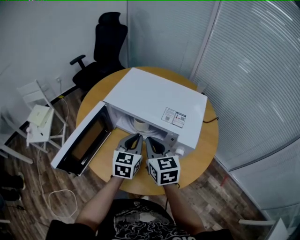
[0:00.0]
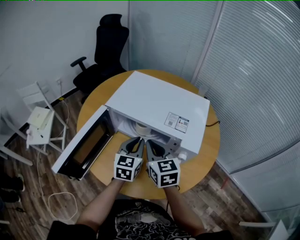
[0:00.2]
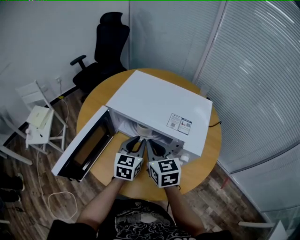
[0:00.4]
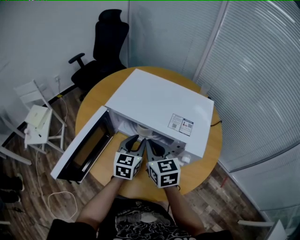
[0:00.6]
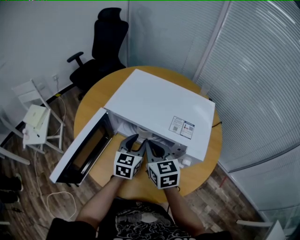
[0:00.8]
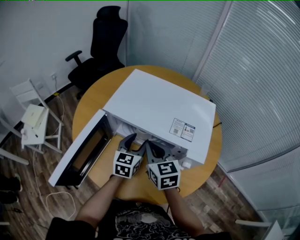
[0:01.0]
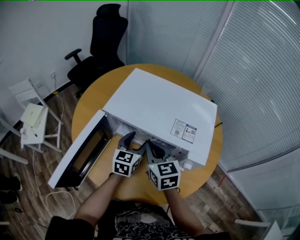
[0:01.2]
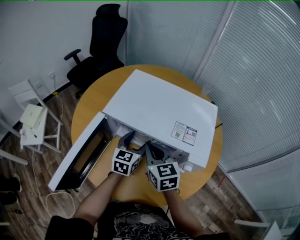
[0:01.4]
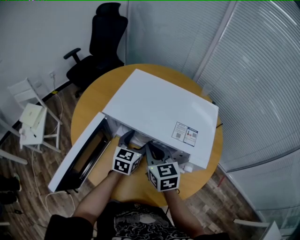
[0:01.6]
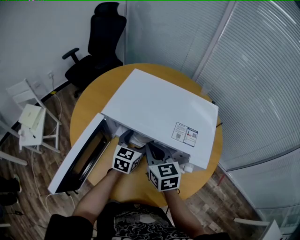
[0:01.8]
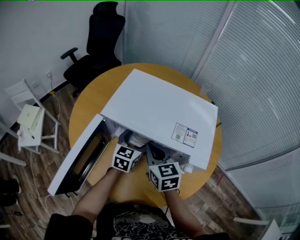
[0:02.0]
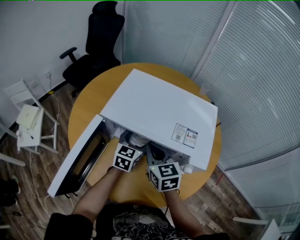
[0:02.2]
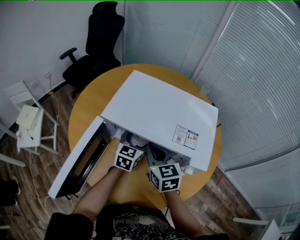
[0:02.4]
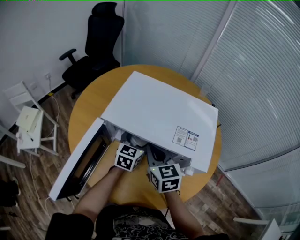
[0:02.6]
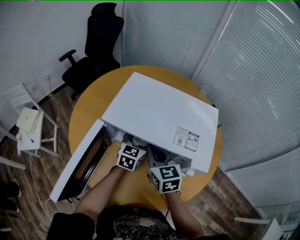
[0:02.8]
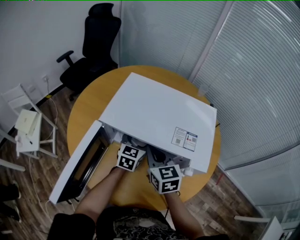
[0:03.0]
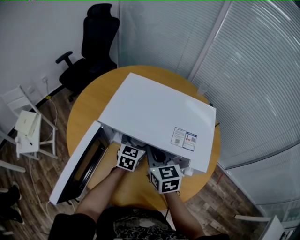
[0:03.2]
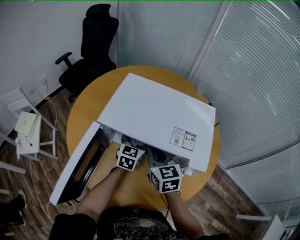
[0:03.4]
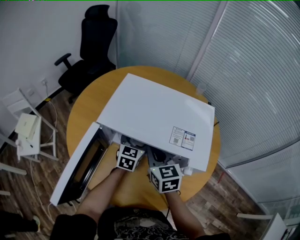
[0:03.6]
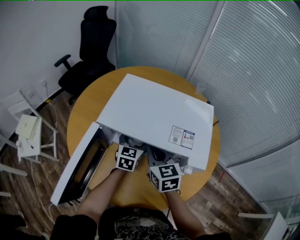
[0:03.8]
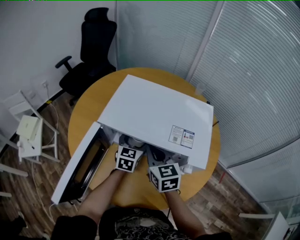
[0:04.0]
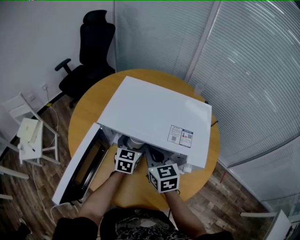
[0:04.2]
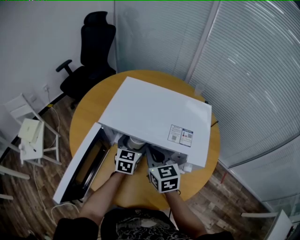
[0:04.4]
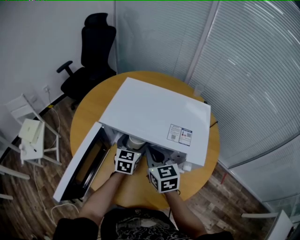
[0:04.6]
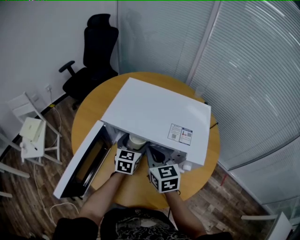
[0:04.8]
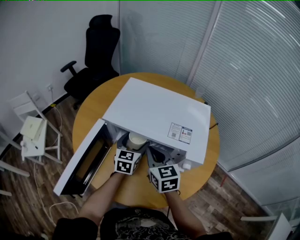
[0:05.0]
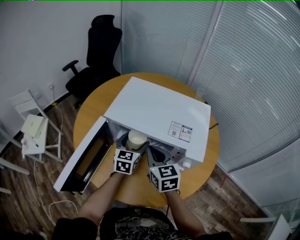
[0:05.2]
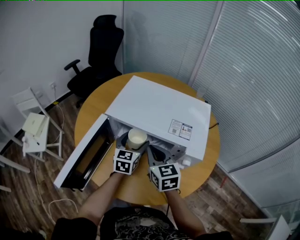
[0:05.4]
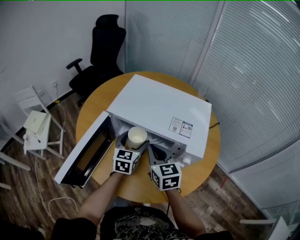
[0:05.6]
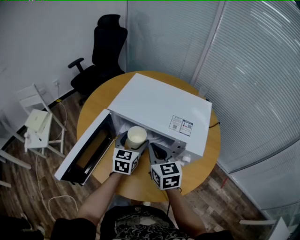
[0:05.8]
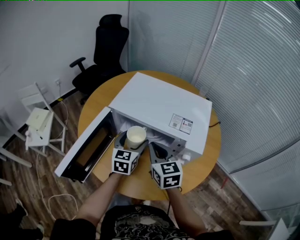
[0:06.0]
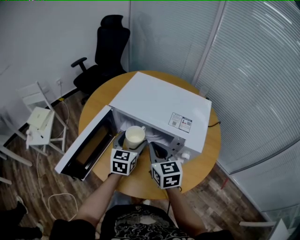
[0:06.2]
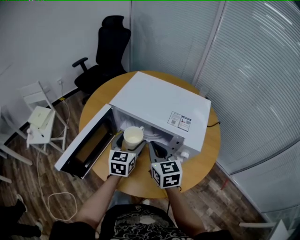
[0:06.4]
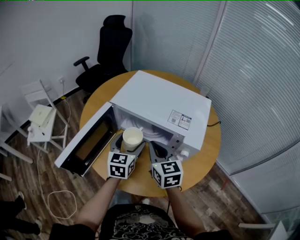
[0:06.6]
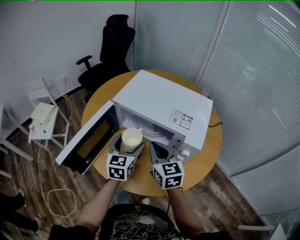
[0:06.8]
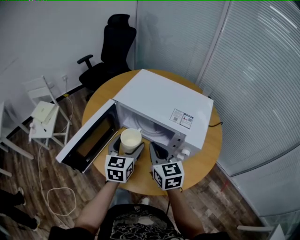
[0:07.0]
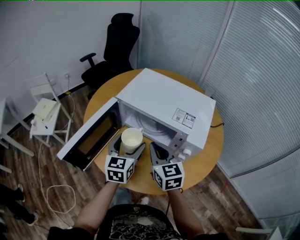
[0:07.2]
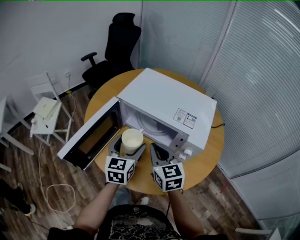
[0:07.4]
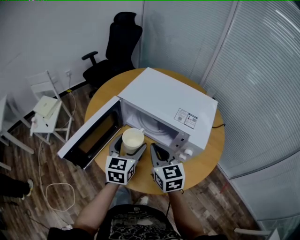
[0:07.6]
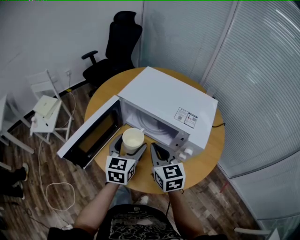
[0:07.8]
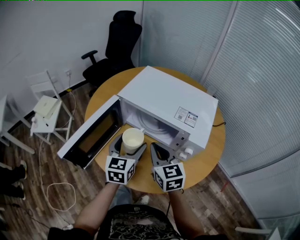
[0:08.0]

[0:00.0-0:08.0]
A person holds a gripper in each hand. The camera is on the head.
0:00.0 to 0:01.6: The left gripper travels forward and downward by about 10 cm, and opens its fingers. Meanwhile the right gripper goes roughly 5 cm forward.
0:01.6 to 0:04.8: The grippers make only small movements.
0:04.8 to 0:06.4: The right gripper travels backward by about 5 cm; the left gripper goes approximately 10 cm backward.
0:06.4 to 0:08.0: The left gripper shifts about 5 cm backward.

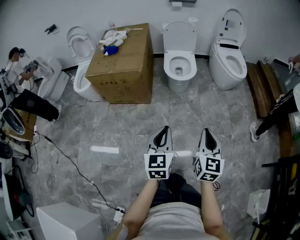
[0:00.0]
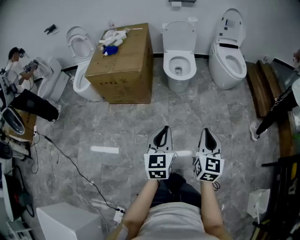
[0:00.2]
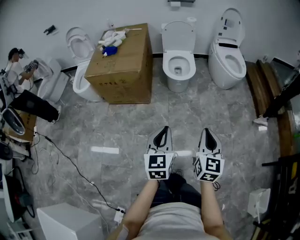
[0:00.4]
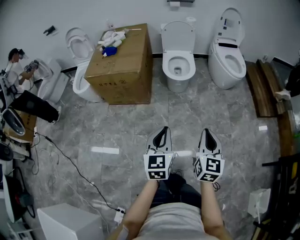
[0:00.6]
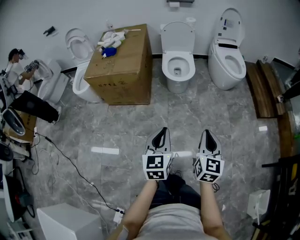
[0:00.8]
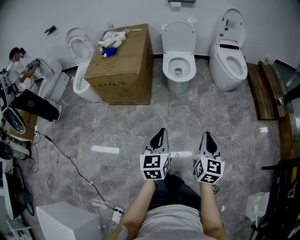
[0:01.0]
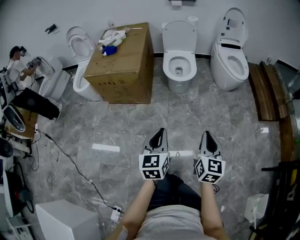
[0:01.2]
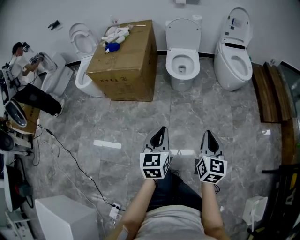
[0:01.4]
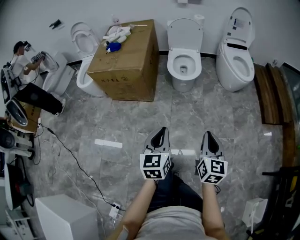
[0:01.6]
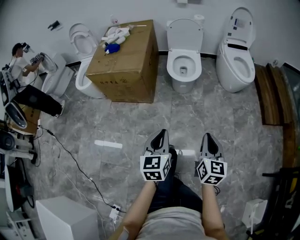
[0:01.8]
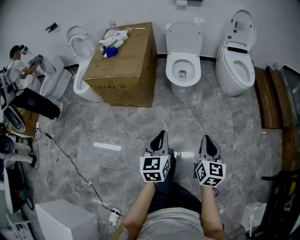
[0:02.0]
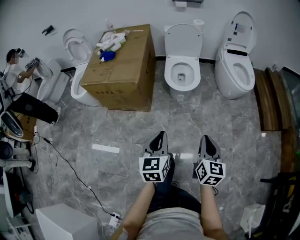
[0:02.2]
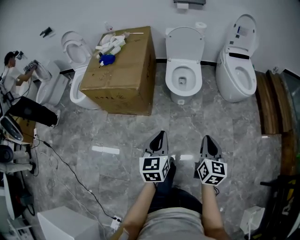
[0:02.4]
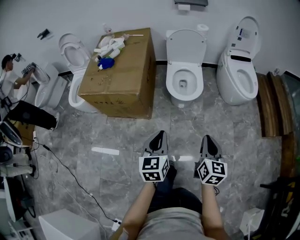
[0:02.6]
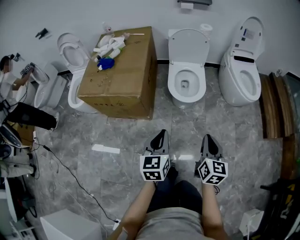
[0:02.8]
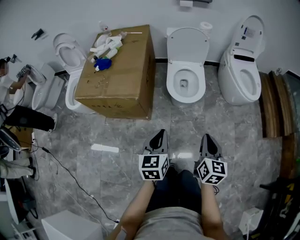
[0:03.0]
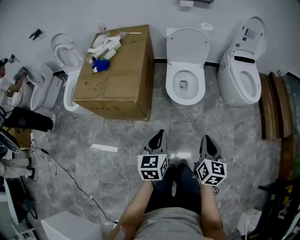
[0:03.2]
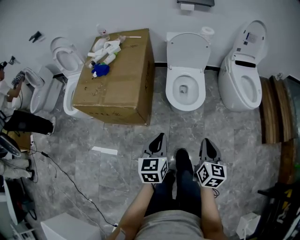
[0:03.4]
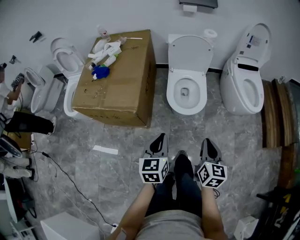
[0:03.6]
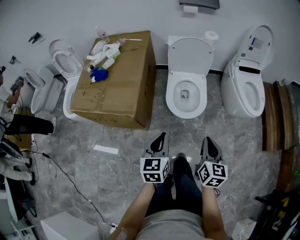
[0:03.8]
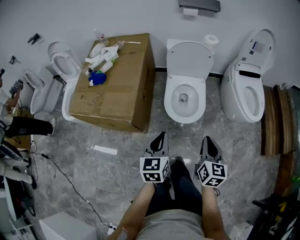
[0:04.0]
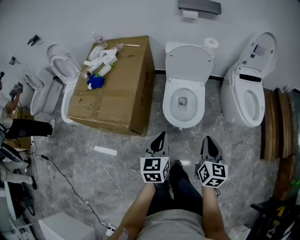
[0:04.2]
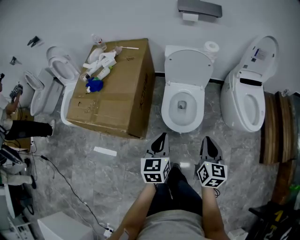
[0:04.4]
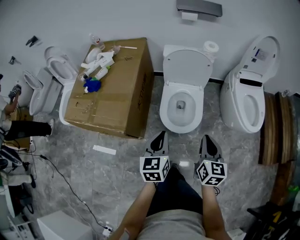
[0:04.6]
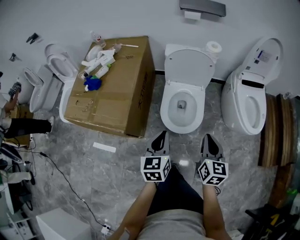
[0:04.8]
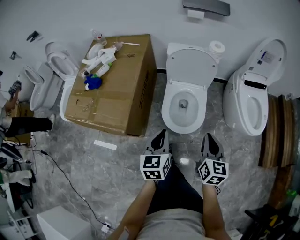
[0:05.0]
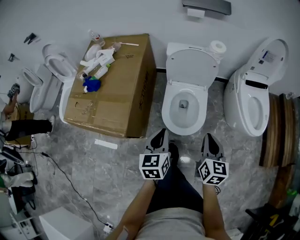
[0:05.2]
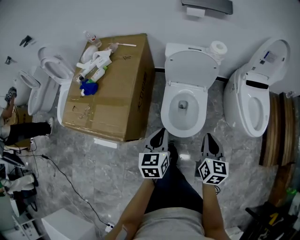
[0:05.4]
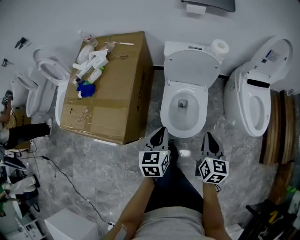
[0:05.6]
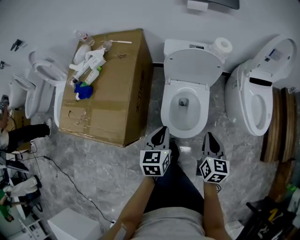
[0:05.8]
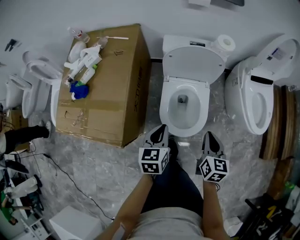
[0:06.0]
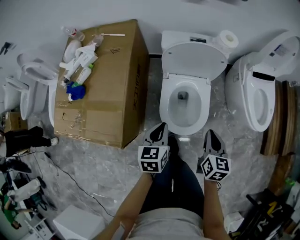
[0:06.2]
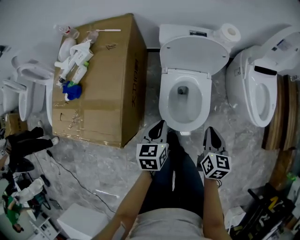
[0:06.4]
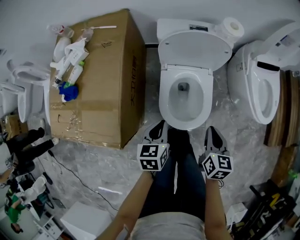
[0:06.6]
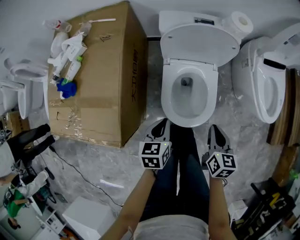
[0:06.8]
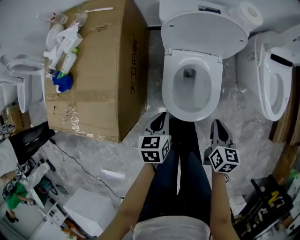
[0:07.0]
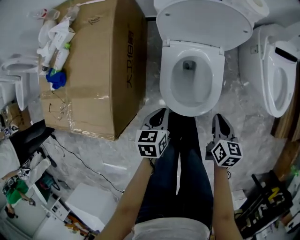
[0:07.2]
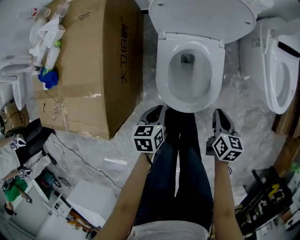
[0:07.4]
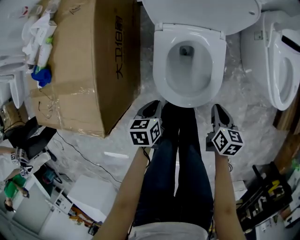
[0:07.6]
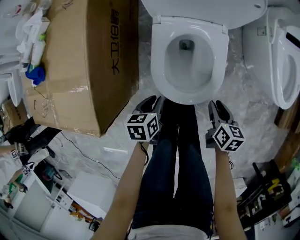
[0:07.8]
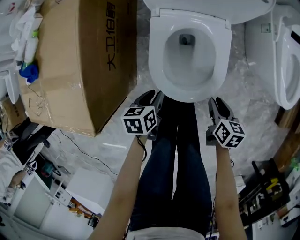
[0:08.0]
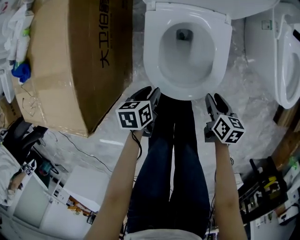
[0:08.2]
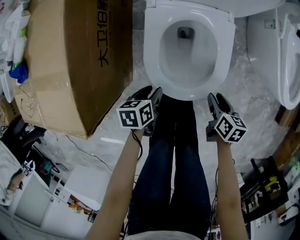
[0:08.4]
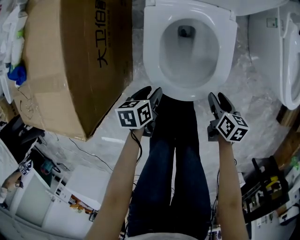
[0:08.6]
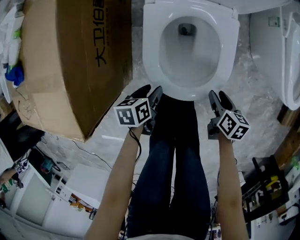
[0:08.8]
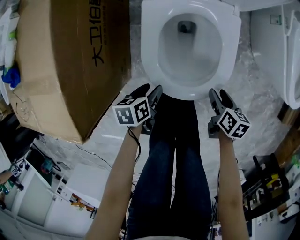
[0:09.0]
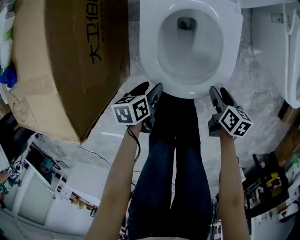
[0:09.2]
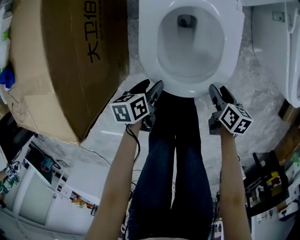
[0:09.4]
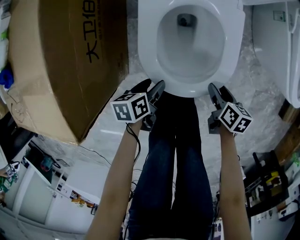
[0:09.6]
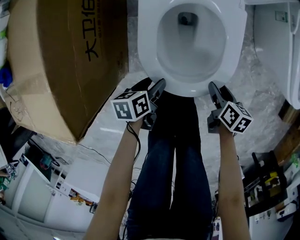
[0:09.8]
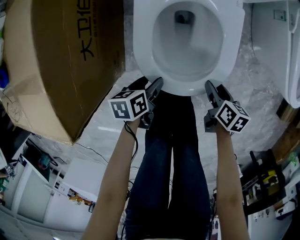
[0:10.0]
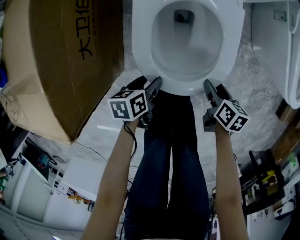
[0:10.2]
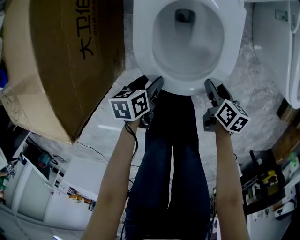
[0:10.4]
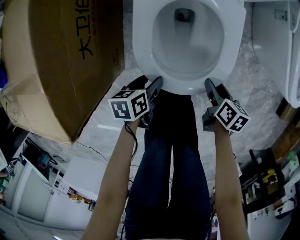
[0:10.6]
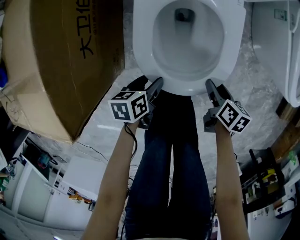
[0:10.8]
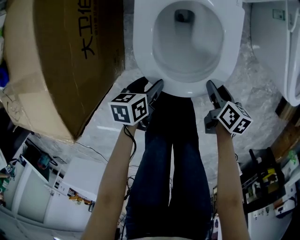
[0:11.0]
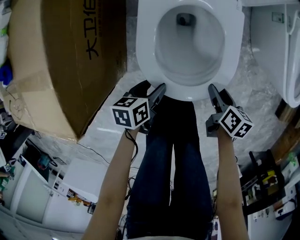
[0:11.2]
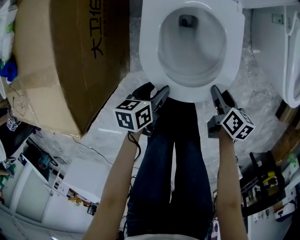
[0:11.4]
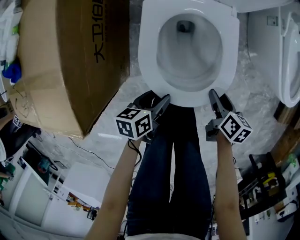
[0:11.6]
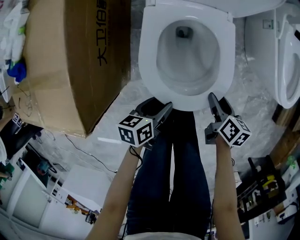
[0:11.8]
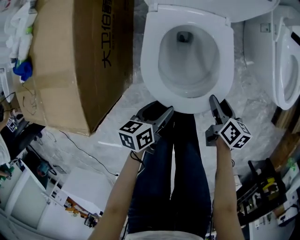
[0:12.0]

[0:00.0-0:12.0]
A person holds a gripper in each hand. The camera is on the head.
0:00.0 to 0:01.6: The right gripper shifts by about 5 cm.
0:01.6 to 0:03.0: The two grippers go about 30 cm forward.
0:03.0 to 0:04.4: Both grippers move forward, roughly 25 cm.
0:04.4 to 0:06.0: The two grippers go approximately 20 cm forward and downward.
0:06.0 to 0:07.6: The two grippers go about 25 cm downward. The right gripper turns by approximately 20 degrees. The left gripper turns by roughly 30 degrees.
0:07.6 to 0:09.0: Both grippers travel together downward, some 15 cm. The right gripper opens its fingers; the left gripper opens its fingers.
0:09.0 to 0:10.4: The grippers stay close to where they were, moving slightly.
0:10.4 to 0:12.0: Both grippers travel together upward, roughly 15 cm.

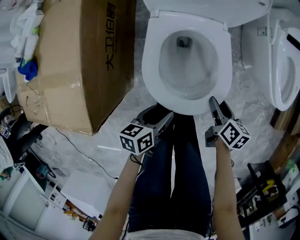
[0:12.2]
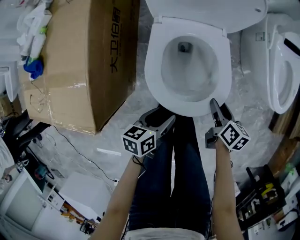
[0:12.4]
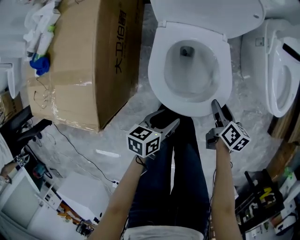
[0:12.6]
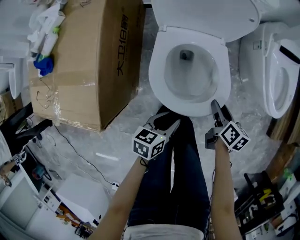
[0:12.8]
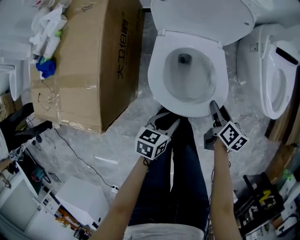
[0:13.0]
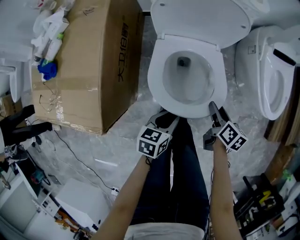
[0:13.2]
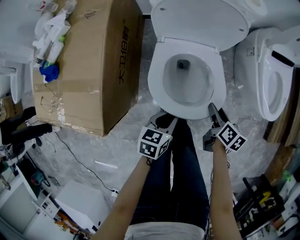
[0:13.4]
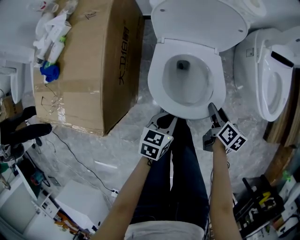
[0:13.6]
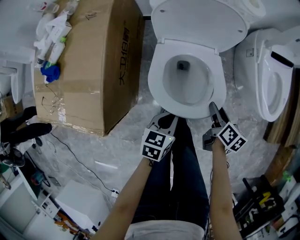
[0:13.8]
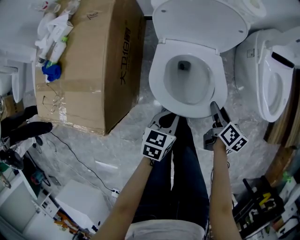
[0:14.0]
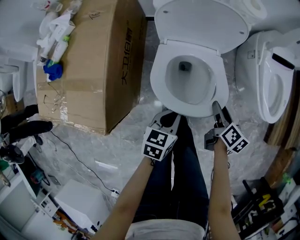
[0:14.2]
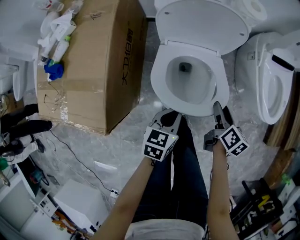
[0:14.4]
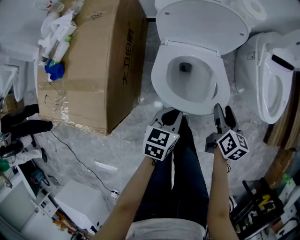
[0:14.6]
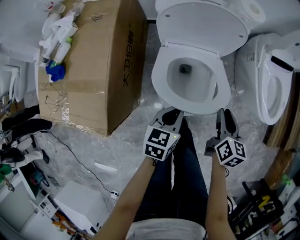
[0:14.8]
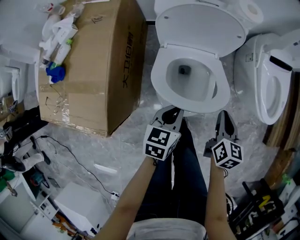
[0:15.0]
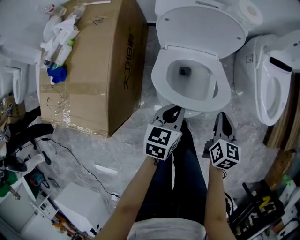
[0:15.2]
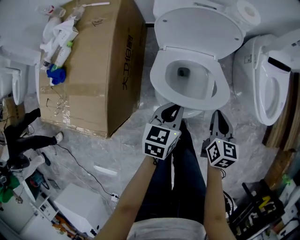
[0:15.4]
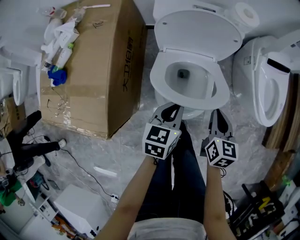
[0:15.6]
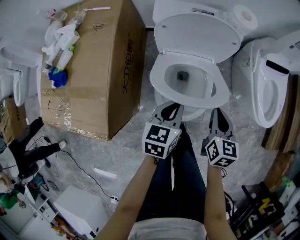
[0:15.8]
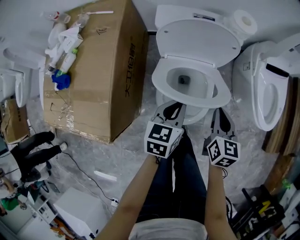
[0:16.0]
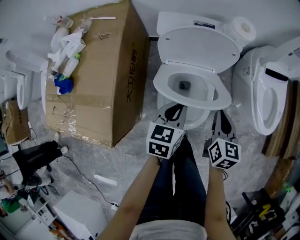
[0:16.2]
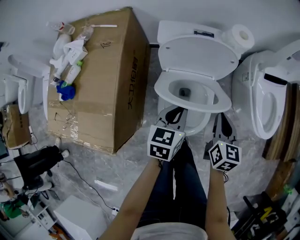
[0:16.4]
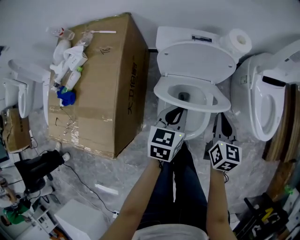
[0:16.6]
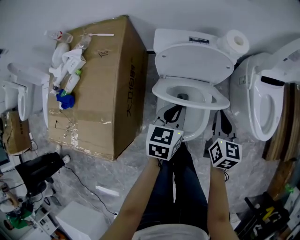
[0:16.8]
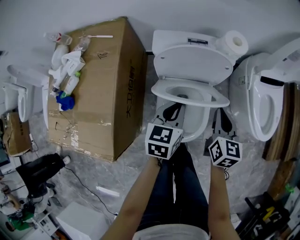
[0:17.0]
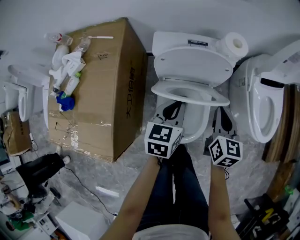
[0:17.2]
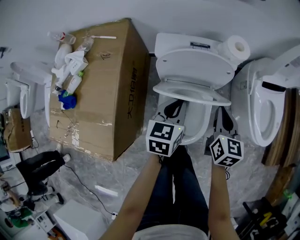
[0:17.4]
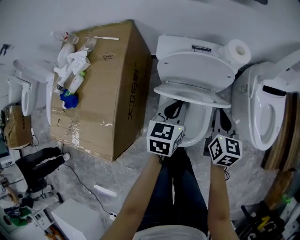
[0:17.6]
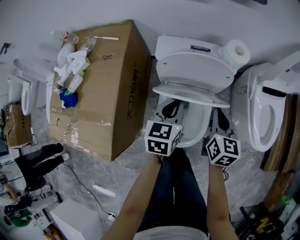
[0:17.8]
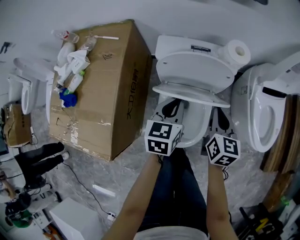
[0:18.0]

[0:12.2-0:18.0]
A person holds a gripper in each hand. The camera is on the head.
0:12.2 to 0:13.6: Both grippers move upward, about 10 cm. The left gripper swivels some 20 degrees, and closes its fingers.
0:13.6 to 0:15.0: The right gripper goes some 10 cm upward, rotates approximately 30 degrees, and closes up; the left gripper shifts some 10 cm upward and forward.
0:15.0 to 0:16.6: Both grippers move forward and upward, some 10 cm.
0:16.6 to 0:18.0: Both grippers move forward, some 5 cm.
